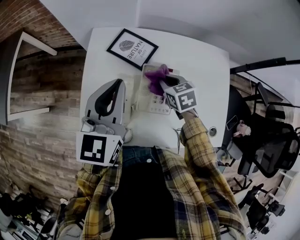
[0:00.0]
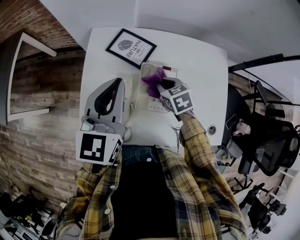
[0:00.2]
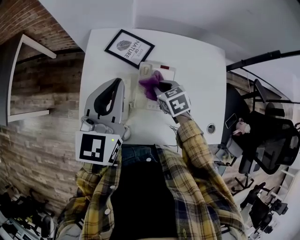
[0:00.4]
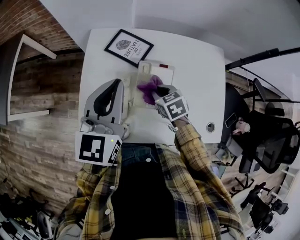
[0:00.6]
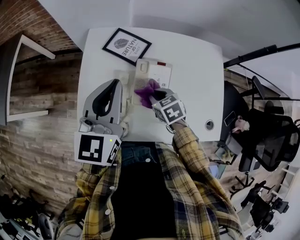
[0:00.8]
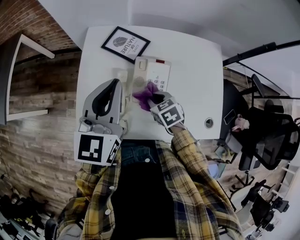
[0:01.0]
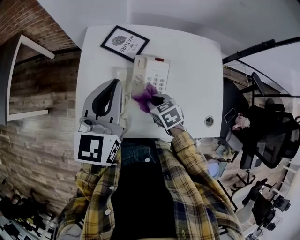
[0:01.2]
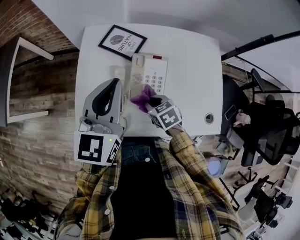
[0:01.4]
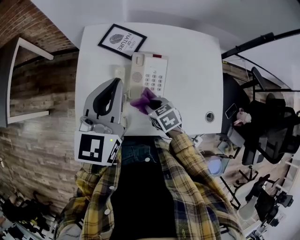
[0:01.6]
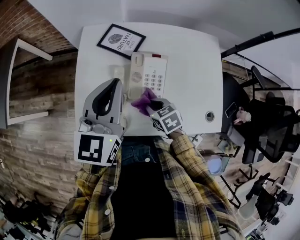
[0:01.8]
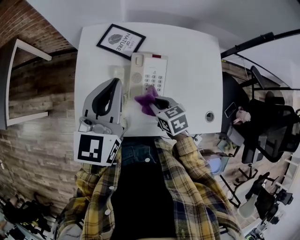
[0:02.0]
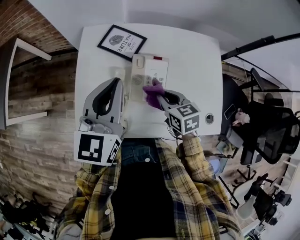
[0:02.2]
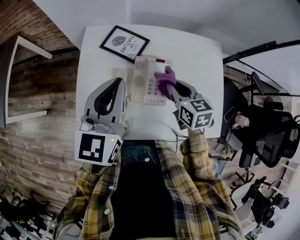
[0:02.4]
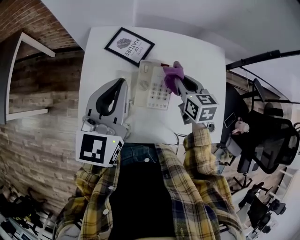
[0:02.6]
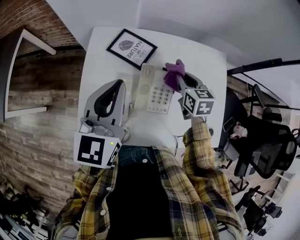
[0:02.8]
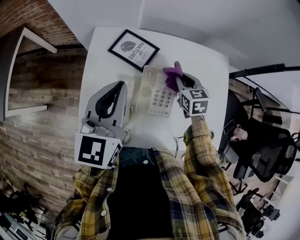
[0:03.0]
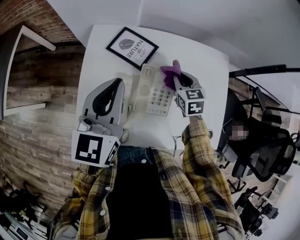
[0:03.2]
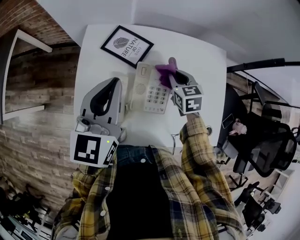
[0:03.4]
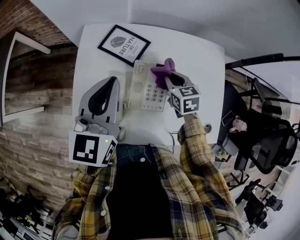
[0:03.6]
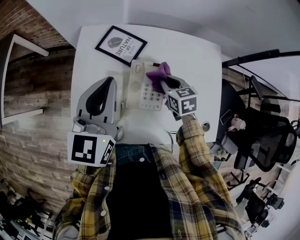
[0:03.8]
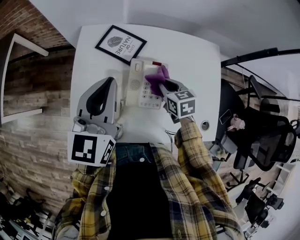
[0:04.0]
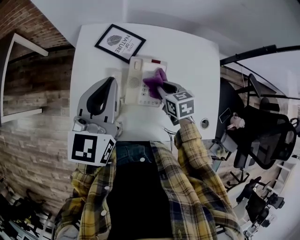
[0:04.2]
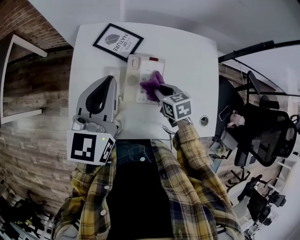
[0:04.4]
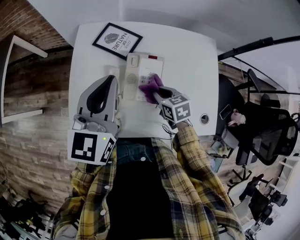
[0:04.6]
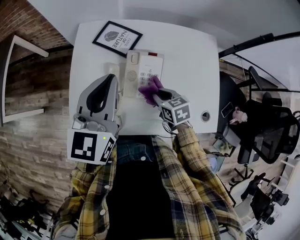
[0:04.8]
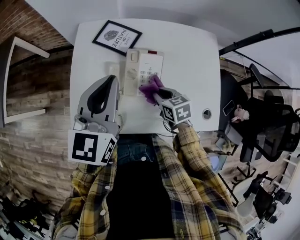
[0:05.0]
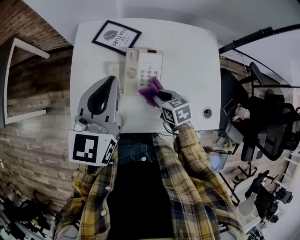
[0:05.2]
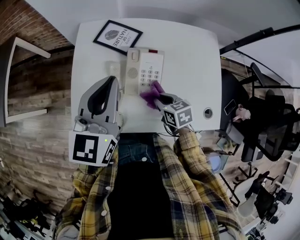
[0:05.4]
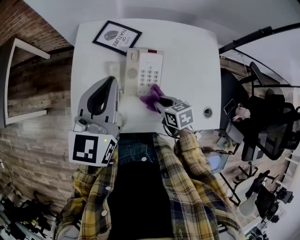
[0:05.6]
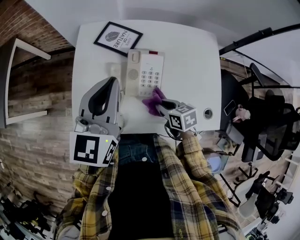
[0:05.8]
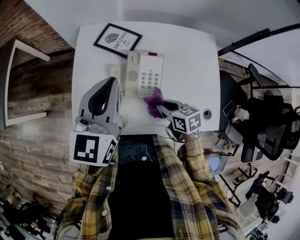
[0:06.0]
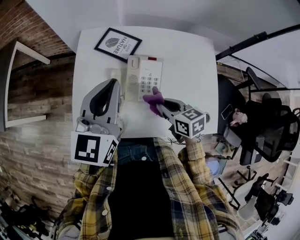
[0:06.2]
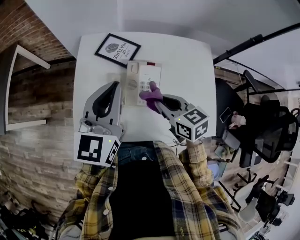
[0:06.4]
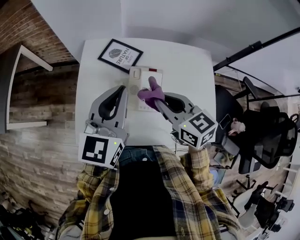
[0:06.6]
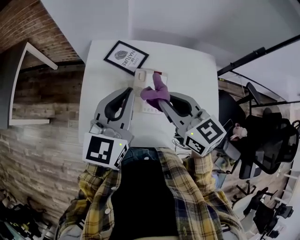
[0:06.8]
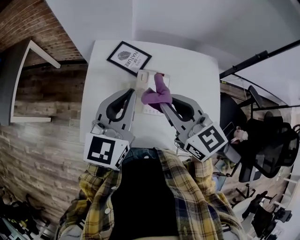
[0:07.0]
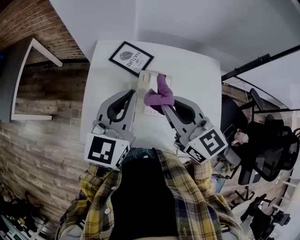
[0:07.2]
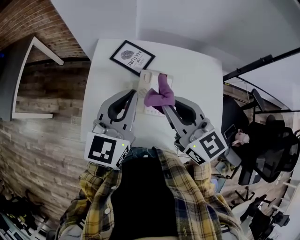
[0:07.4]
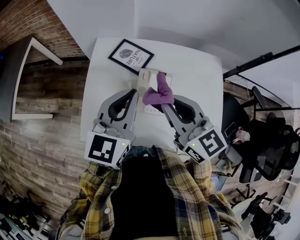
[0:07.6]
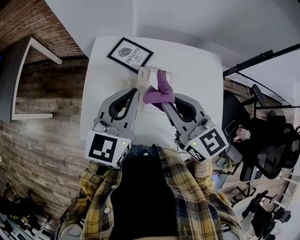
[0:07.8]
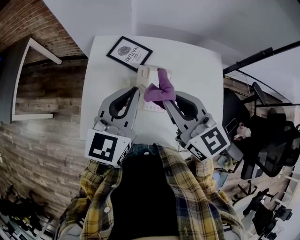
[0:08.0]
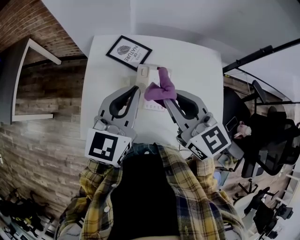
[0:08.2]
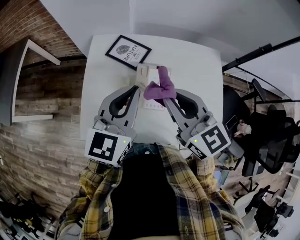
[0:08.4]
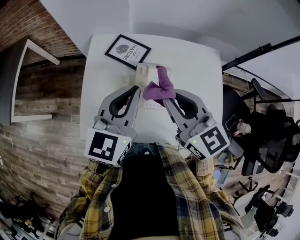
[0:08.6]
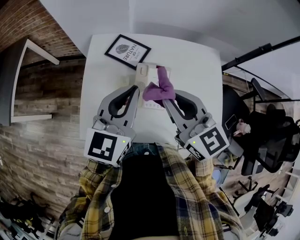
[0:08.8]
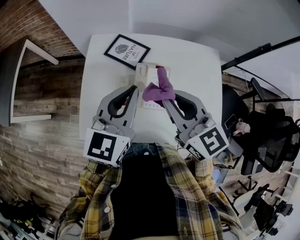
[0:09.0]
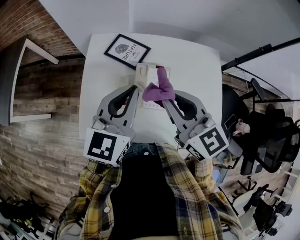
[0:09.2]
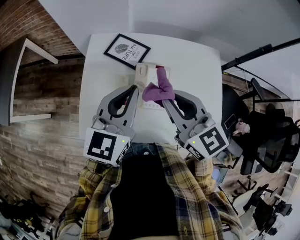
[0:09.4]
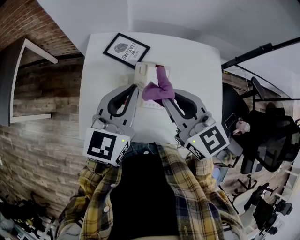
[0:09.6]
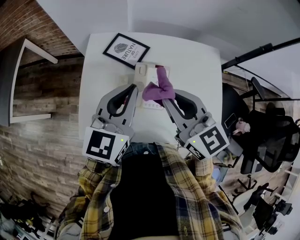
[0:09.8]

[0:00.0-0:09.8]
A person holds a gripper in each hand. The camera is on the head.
0:00.0 to 0:01.4: The right gripper goes about 15 cm backward, while the left gripper travels backward by some 5 cm.
0:01.4 to 0:02.8: The right gripper moves forward, to the right and upward, about 20 cm, and swivels approximately 30 degrees.
0:02.8 to 0:04.2: The right gripper moves backward and downward, about 10 cm.
0:04.2 to 0:05.6: The right gripper moves backward, some 10 cm.
0:05.6 to 0:07.0: The right gripper is displaced upward by roughly 30 cm, and angles its fingers upward, by roughly 30 degrees.
0:07.0 to 0:08.4: The grippers make only small movements.
0:08.4 to 0:09.8: Both grippers stay put.

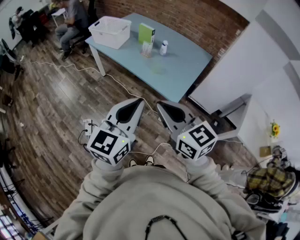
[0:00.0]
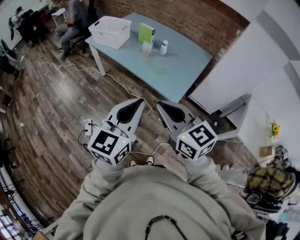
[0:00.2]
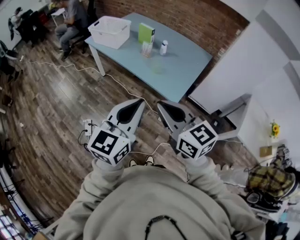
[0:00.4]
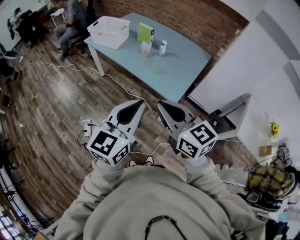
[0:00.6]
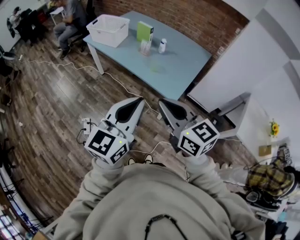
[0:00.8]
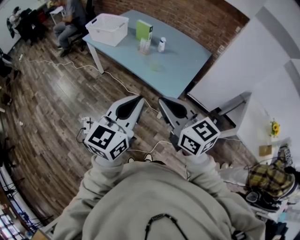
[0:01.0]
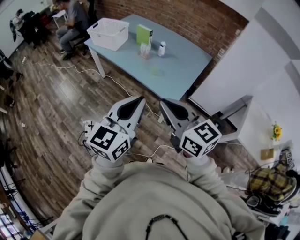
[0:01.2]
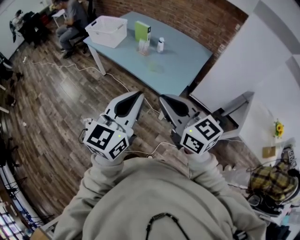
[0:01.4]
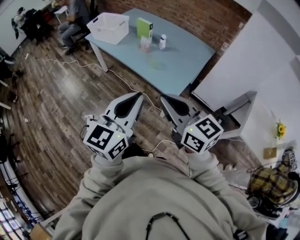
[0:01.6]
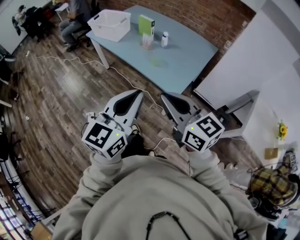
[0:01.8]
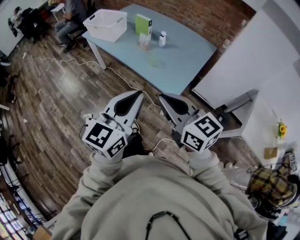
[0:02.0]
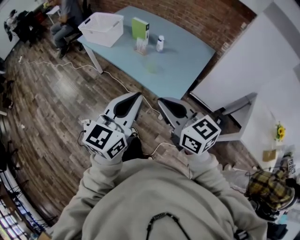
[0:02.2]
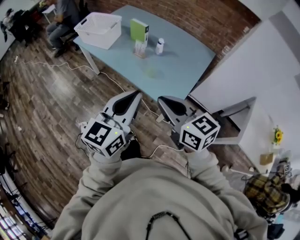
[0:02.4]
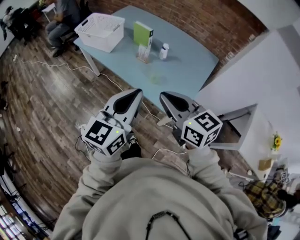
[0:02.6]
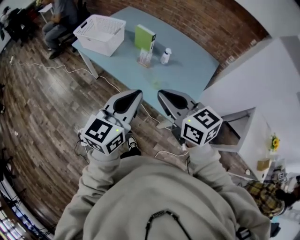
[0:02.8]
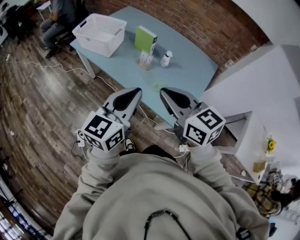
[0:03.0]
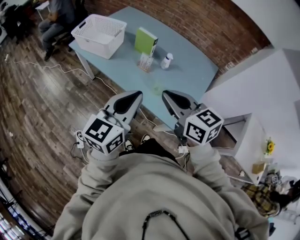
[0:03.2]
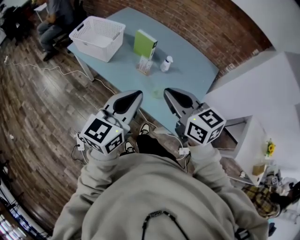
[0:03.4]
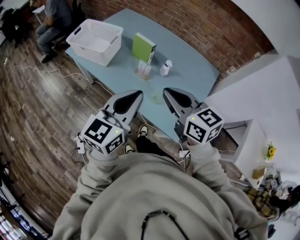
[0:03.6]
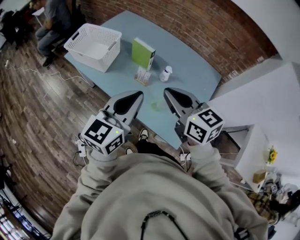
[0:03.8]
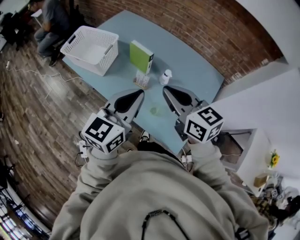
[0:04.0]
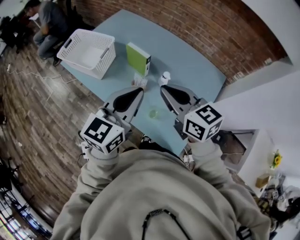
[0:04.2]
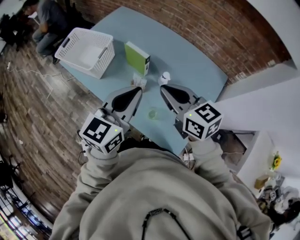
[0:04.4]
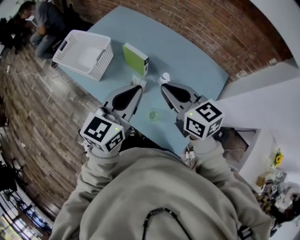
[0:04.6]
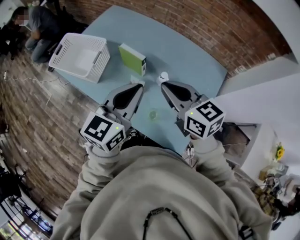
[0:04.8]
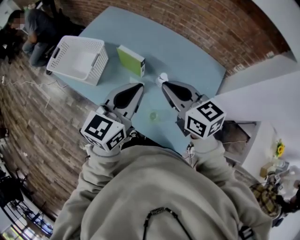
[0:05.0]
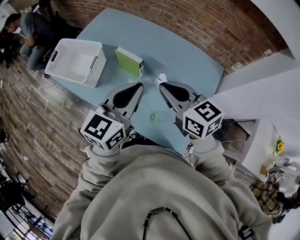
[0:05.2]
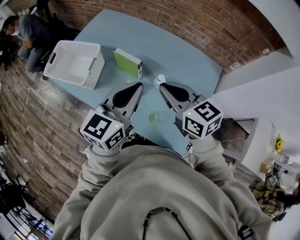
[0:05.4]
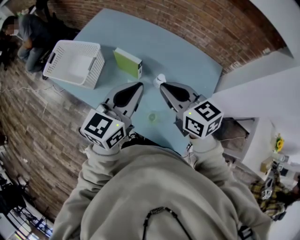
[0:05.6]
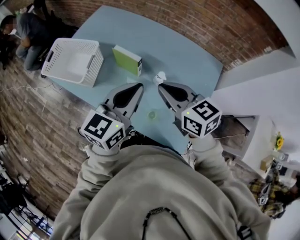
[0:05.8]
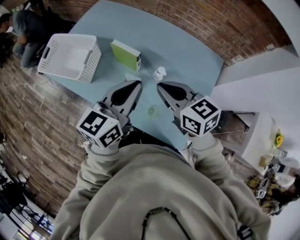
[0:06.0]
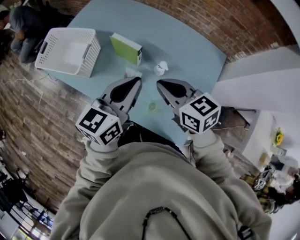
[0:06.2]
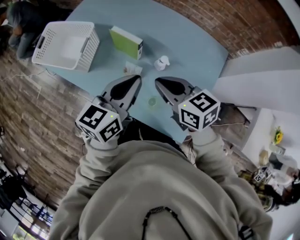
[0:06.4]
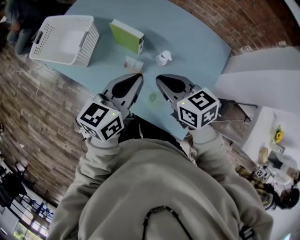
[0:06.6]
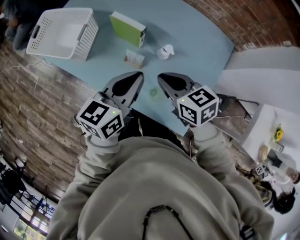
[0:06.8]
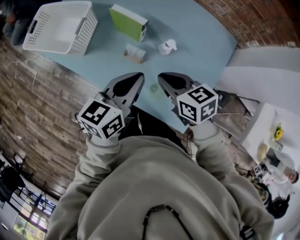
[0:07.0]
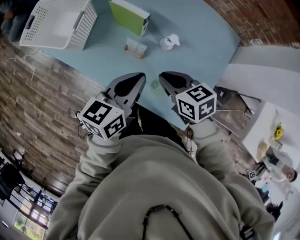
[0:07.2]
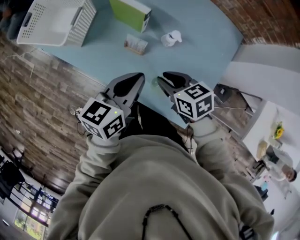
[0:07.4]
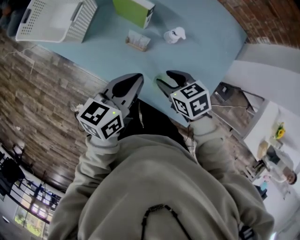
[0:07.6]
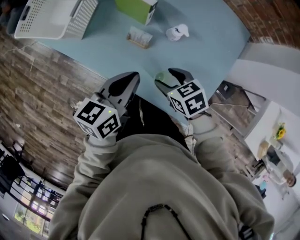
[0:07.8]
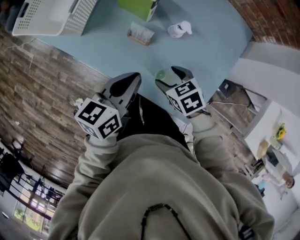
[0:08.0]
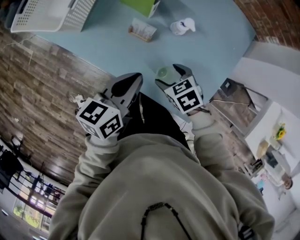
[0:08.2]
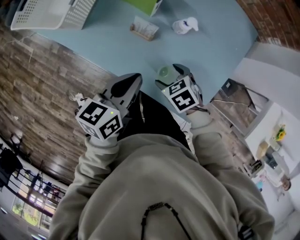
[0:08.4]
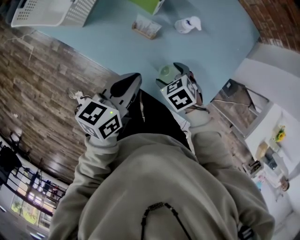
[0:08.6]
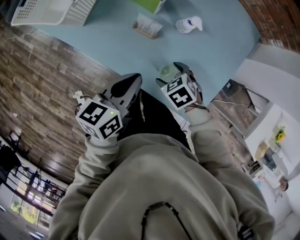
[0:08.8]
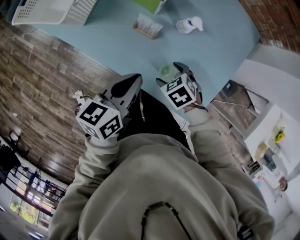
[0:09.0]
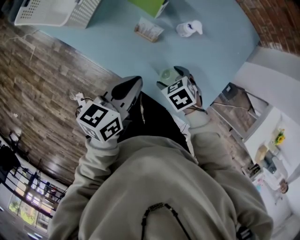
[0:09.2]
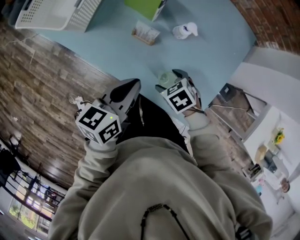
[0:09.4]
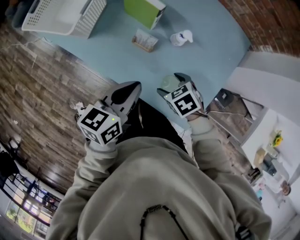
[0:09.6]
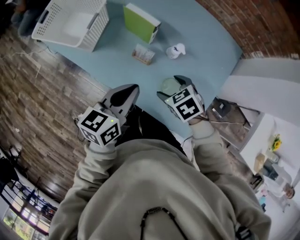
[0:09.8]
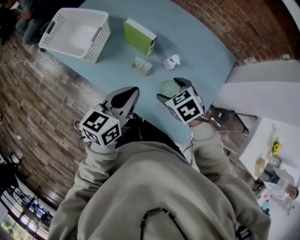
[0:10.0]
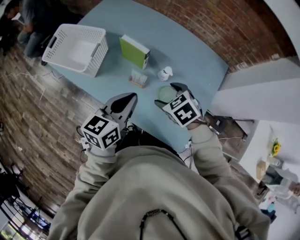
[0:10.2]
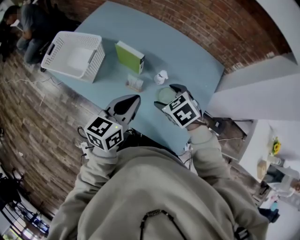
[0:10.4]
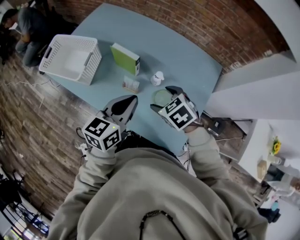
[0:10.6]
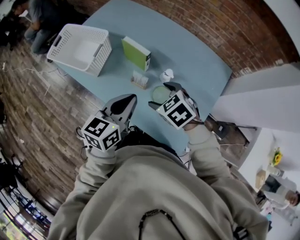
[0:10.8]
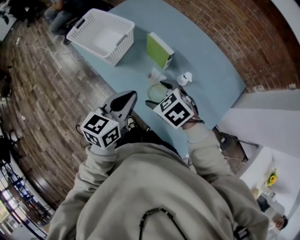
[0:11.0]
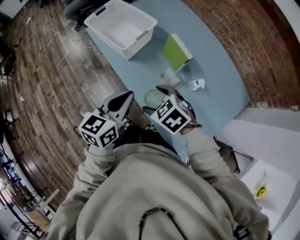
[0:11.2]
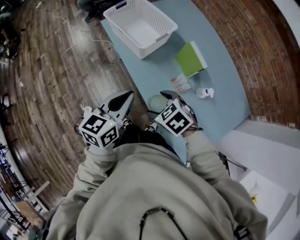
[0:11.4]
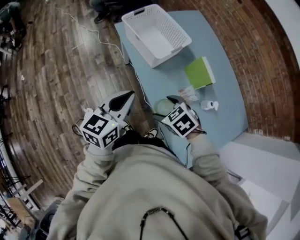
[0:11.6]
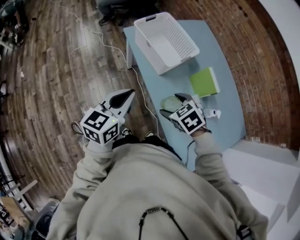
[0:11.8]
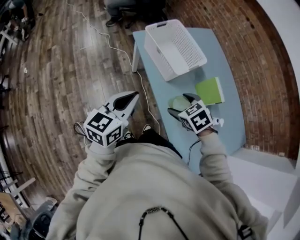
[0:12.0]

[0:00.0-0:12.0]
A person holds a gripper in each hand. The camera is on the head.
0:00.0 to 0:01.6: The two grippers go about 5 cm to the right.
0:01.6 to 0:03.0: Both grippers travel together forward, approximately 30 cm.
0:03.0 to 0:04.4: Both grippers move forward, some 25 cm.
0:04.4 to 0:06.0: The left gripper shifts about 5 cm forward, while the right gripper moves roughly 5 cm.
0:06.0 to 0:07.6: Both grippers travel together downward, about 20 cm. The left gripper swivels approximately 20 degrees. Meanwhile the right gripper swivels some 30 degrees, and opens.
0:07.6 to 0:09.0: The right gripper goes roughly 10 cm downward, turns by some 30 degrees, and opens up; the left gripper heads downward, covering roughly 5 cm.
0:09.0 to 0:10.4: The grippers both shift upward by some 20 cm. The left gripper swivels roughly 20 degrees.
0:10.4 to 0:12.0: The left gripper changes place by approximately 40 cm, and rotates about 40 degrees, while the right gripper moves some 30 cm, and rotates roughly 40 degrees.

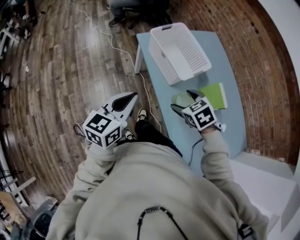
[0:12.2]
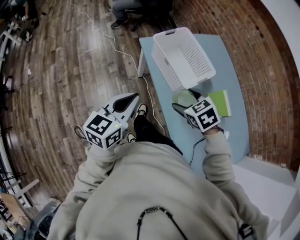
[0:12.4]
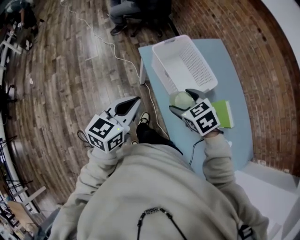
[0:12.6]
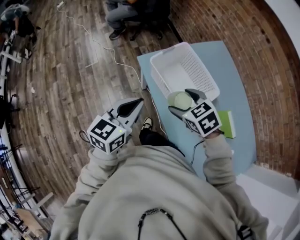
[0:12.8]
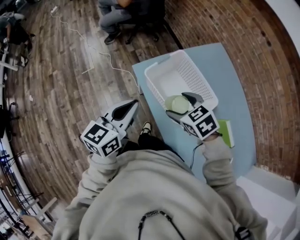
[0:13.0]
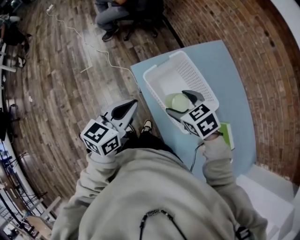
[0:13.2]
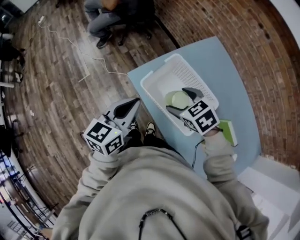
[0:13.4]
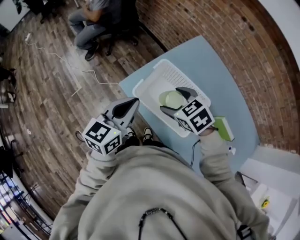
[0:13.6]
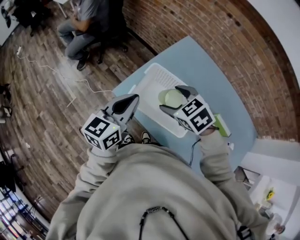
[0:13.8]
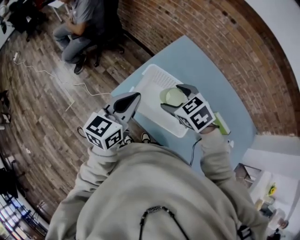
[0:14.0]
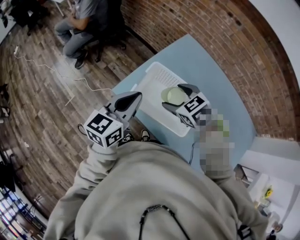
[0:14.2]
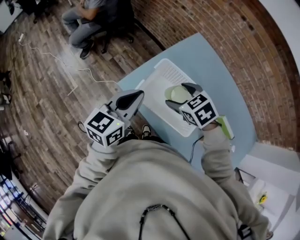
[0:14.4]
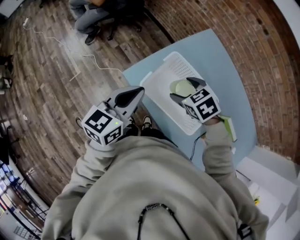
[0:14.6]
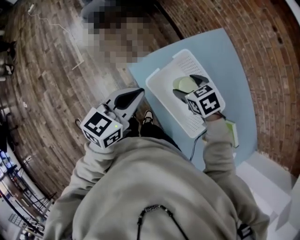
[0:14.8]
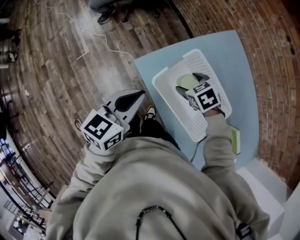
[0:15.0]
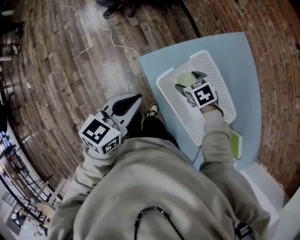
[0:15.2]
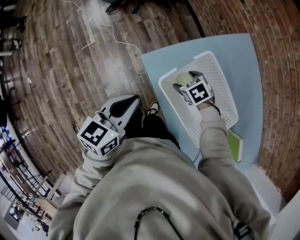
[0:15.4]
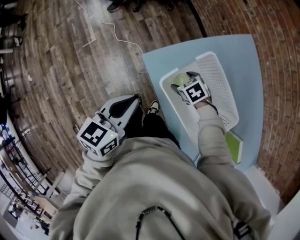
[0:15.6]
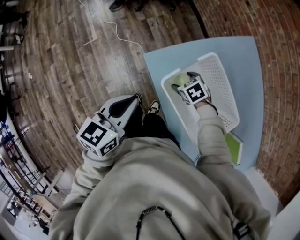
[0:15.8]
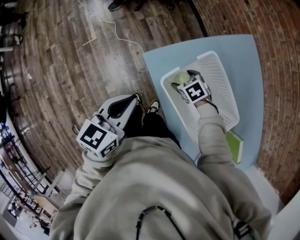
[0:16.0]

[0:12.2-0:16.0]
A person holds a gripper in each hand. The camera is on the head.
0:12.2 to 0:13.4: The two grippers go roughly 30 cm forward.
0:13.4 to 0:14.8: The left gripper shifts about 5 cm forward, while the right gripper goes some 10 cm forward and downward.
0:14.8 to 0:16.0: The right gripper travels downward by about 20 cm; the left gripper goes approximately 10 cm to the left and downward.
